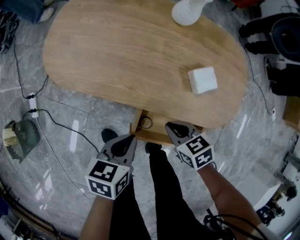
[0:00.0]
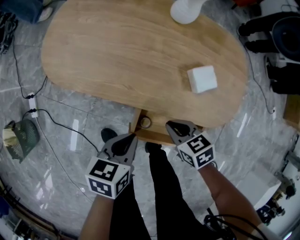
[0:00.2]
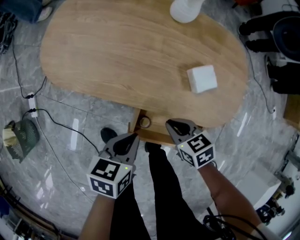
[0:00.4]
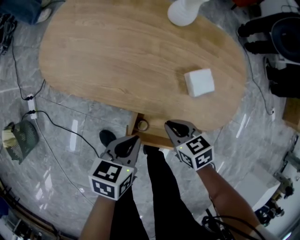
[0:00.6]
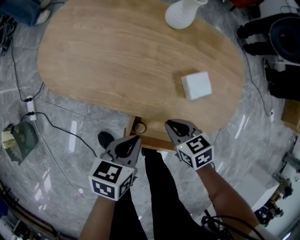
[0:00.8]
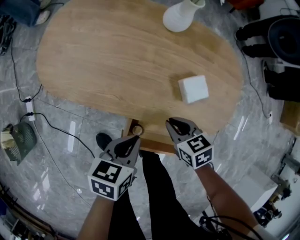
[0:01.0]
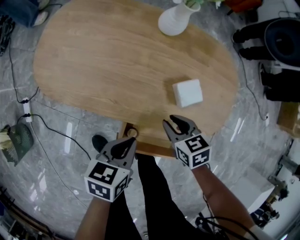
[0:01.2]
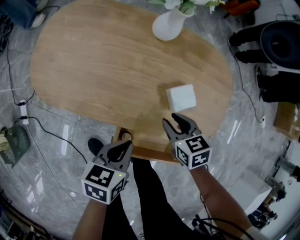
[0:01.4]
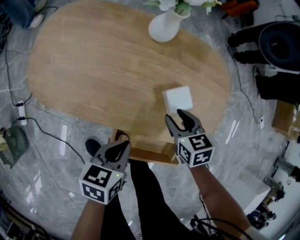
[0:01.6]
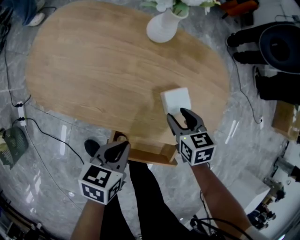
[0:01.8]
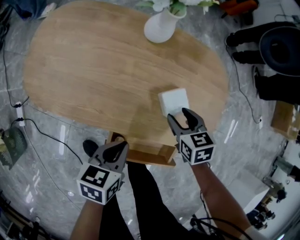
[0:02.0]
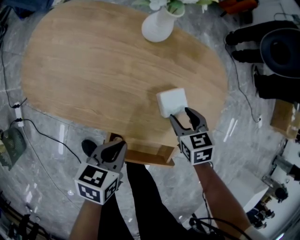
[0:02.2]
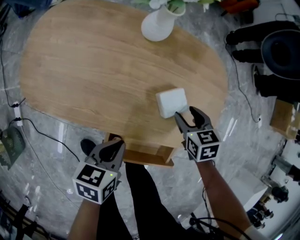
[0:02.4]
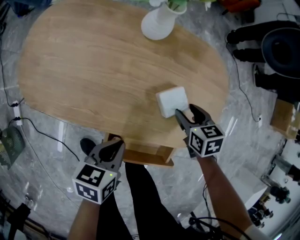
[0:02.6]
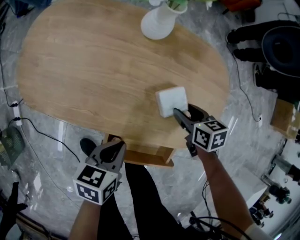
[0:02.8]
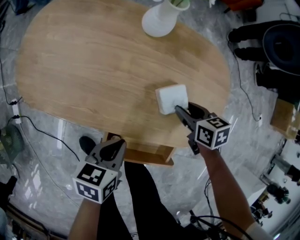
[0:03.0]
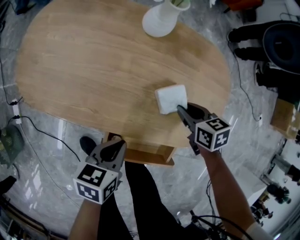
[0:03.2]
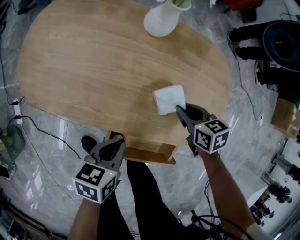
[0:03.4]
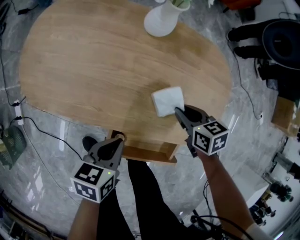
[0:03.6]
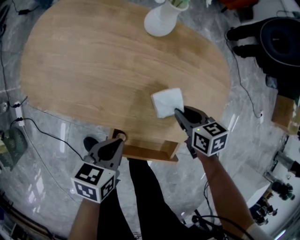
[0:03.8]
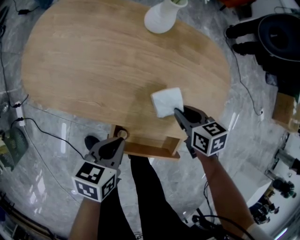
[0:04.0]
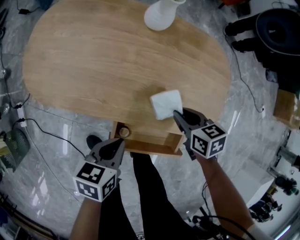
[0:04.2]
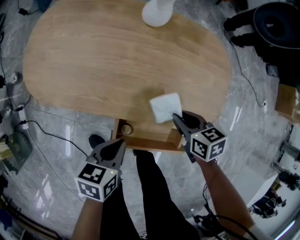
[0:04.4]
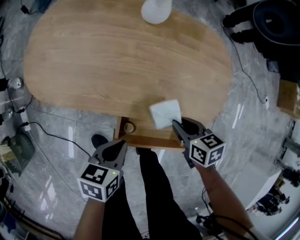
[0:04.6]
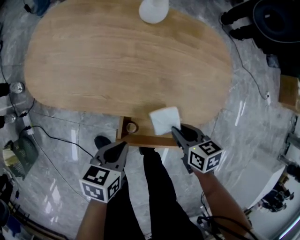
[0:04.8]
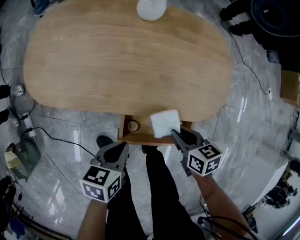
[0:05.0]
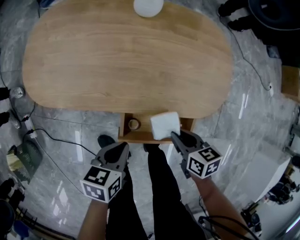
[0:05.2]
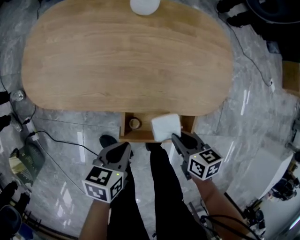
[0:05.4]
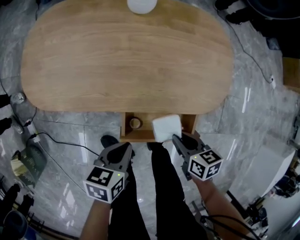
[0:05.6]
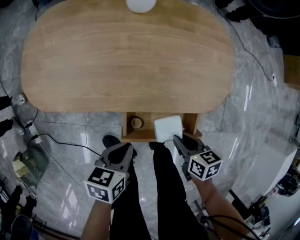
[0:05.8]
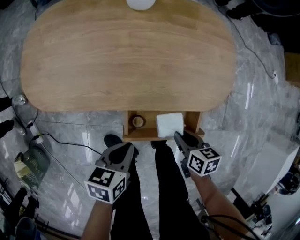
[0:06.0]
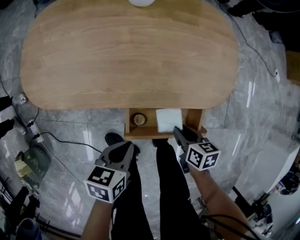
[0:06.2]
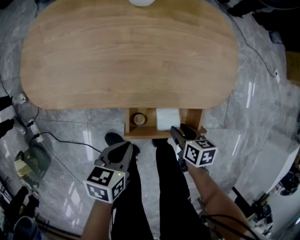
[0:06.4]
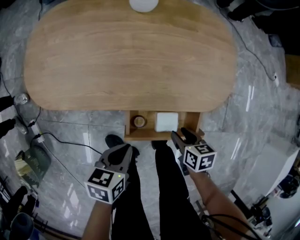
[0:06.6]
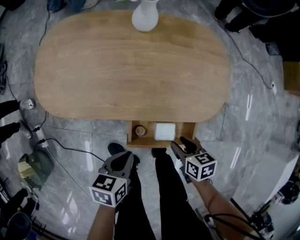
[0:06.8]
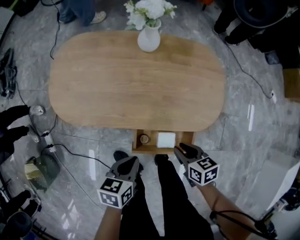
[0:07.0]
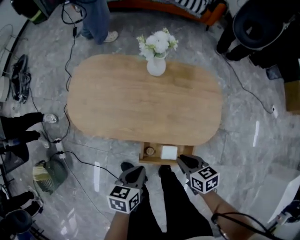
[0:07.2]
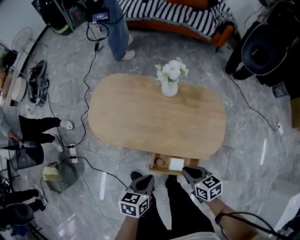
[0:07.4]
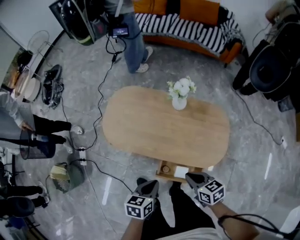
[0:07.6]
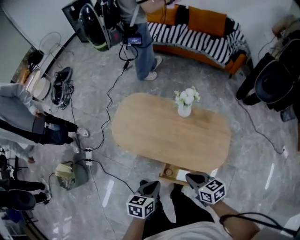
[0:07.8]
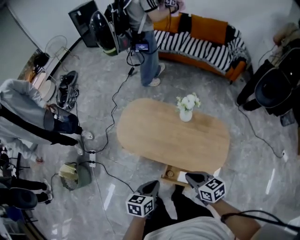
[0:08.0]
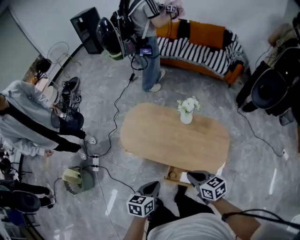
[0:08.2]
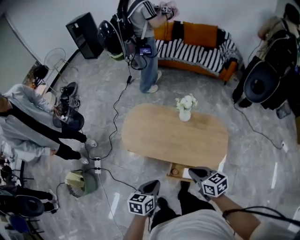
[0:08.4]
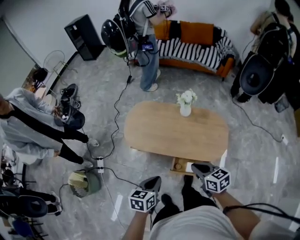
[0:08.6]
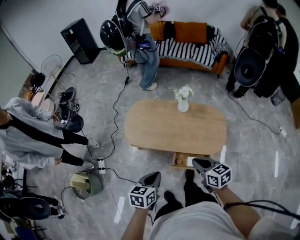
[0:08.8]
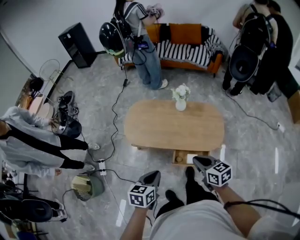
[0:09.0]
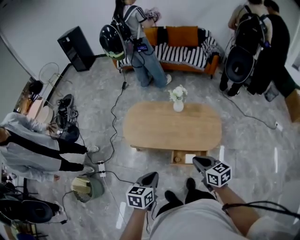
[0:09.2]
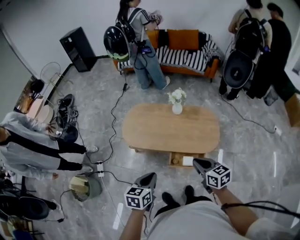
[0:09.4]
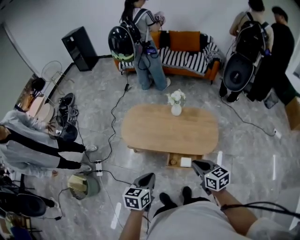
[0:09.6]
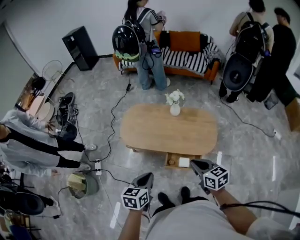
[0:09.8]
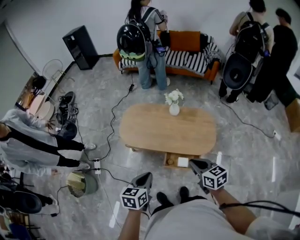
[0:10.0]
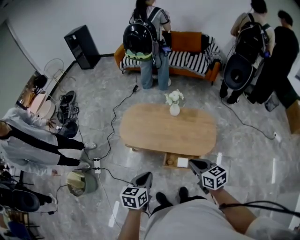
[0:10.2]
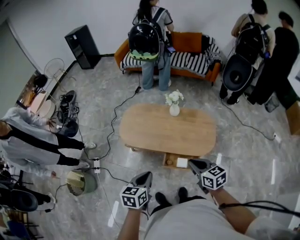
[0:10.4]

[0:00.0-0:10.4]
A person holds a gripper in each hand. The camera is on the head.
0:00.0 to 0:01.4: The right gripper travels forward and to the right by roughly 15 cm, and opens. Meanwhile the left gripper moves to the right and forward, approximately 10 cm.
0:01.4 to 0:03.0: The right gripper goes roughly 10 cm to the right and forward.
0:03.0 to 0:04.4: The right gripper travels backward by about 10 cm, and closes. Meanwhile the left gripper goes approximately 5 cm backward.
0:04.4 to 0:06.0: The right gripper is displaced backward by about 15 cm, and rotates approximately 30 degrees; the left gripper is displaced backward by about 5 cm.
0:06.0 to 0:07.4: The grippers both shift upward by about 25 cm. The right gripper swivels about 30 degrees, and opens, then closes once more.
0:07.4 to 0:09.0: The right gripper is displaced upward by about 25 cm. The left gripper goes about 25 cm upward, to the left and backward.
0:09.0 to 0:10.4: The left gripper shifts by roughly 5 cm, while the right gripper goes roughly 5 cm to the right.

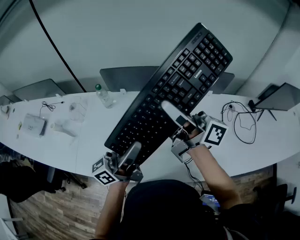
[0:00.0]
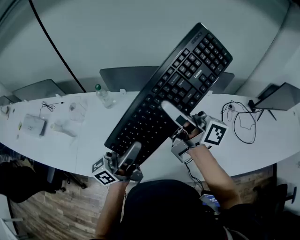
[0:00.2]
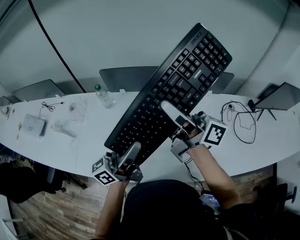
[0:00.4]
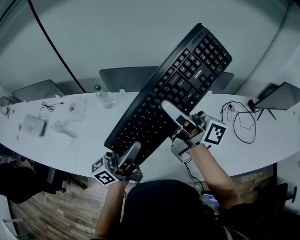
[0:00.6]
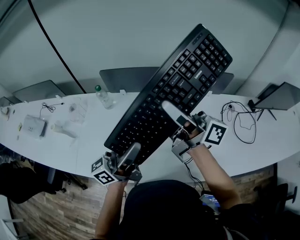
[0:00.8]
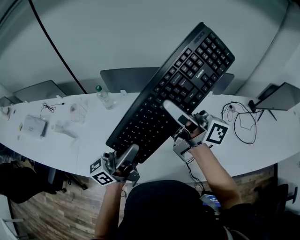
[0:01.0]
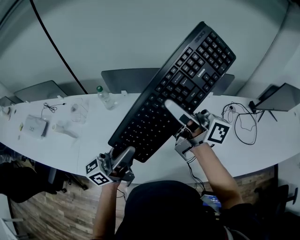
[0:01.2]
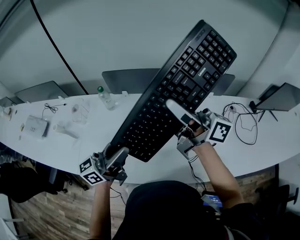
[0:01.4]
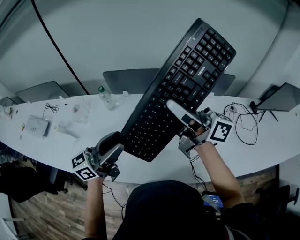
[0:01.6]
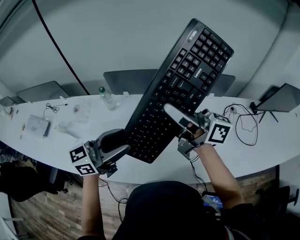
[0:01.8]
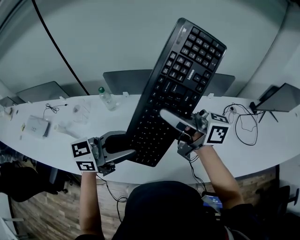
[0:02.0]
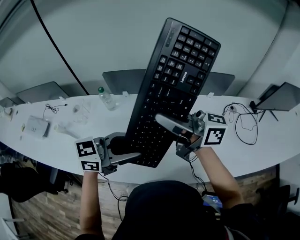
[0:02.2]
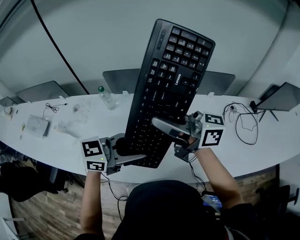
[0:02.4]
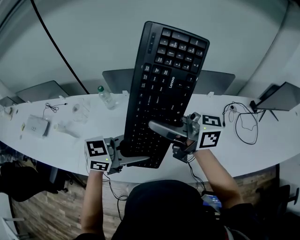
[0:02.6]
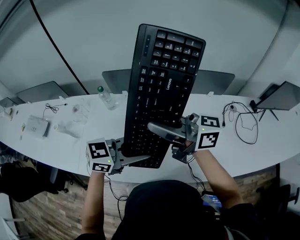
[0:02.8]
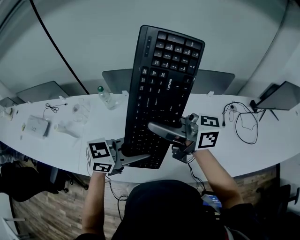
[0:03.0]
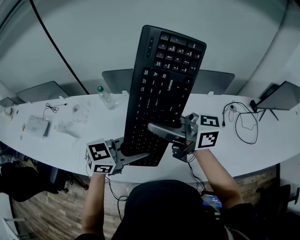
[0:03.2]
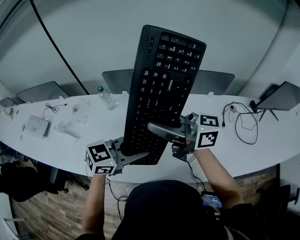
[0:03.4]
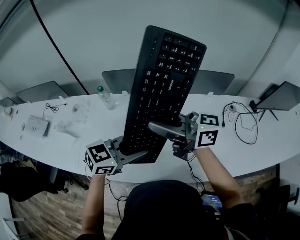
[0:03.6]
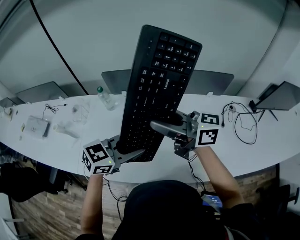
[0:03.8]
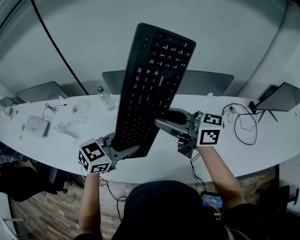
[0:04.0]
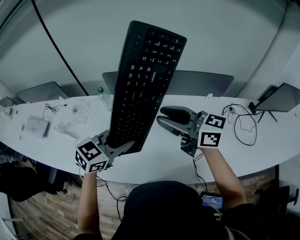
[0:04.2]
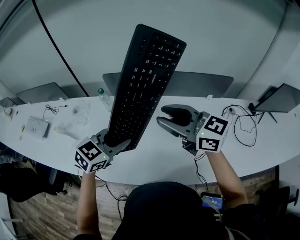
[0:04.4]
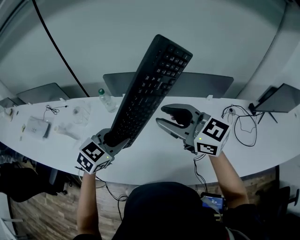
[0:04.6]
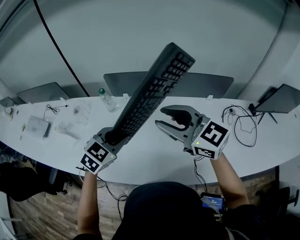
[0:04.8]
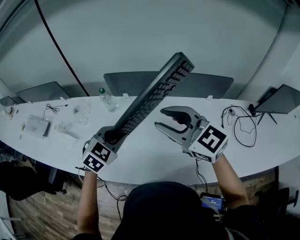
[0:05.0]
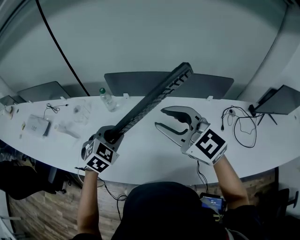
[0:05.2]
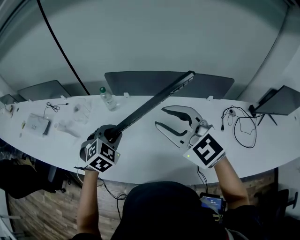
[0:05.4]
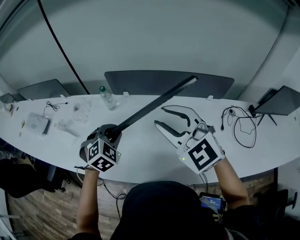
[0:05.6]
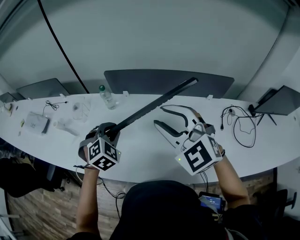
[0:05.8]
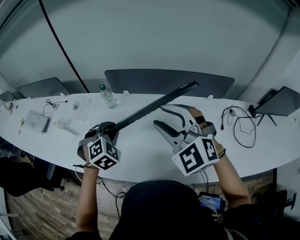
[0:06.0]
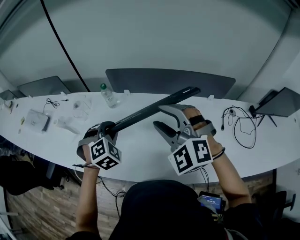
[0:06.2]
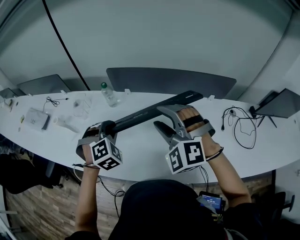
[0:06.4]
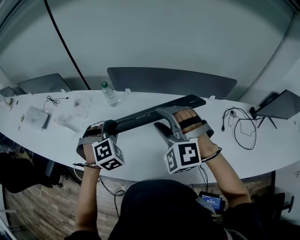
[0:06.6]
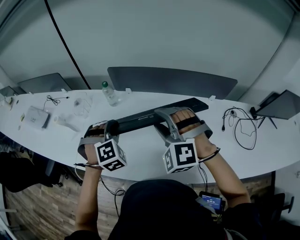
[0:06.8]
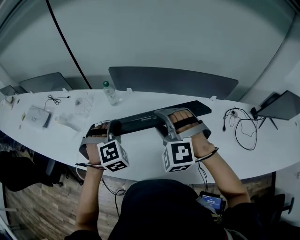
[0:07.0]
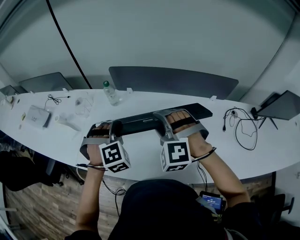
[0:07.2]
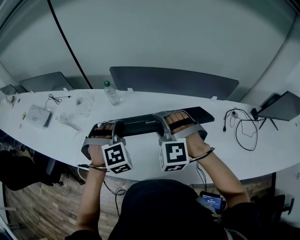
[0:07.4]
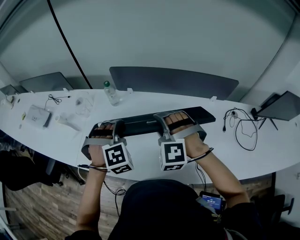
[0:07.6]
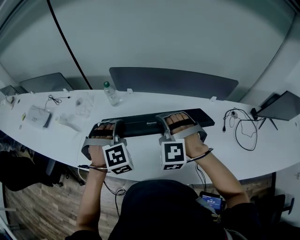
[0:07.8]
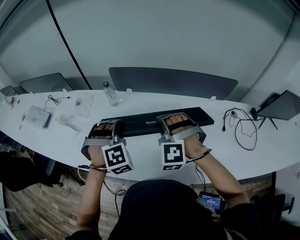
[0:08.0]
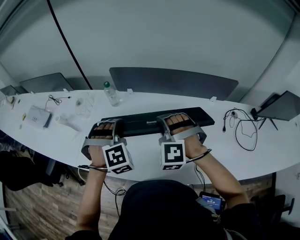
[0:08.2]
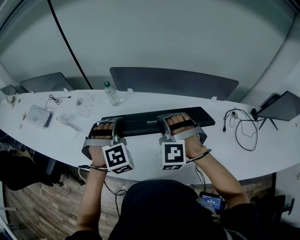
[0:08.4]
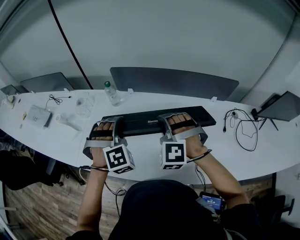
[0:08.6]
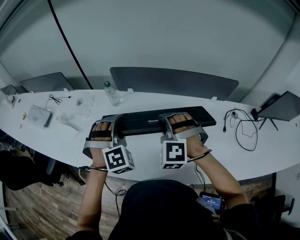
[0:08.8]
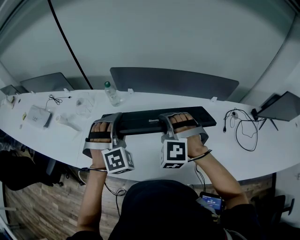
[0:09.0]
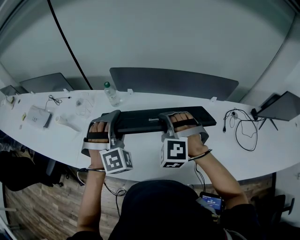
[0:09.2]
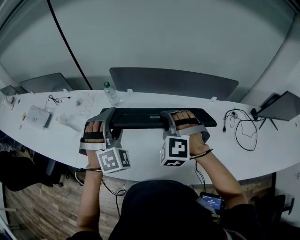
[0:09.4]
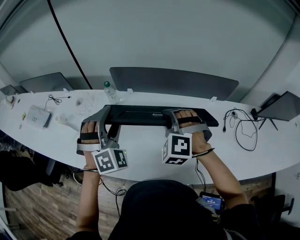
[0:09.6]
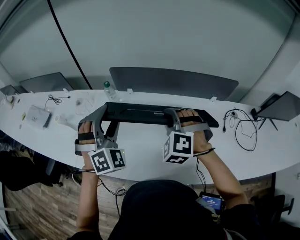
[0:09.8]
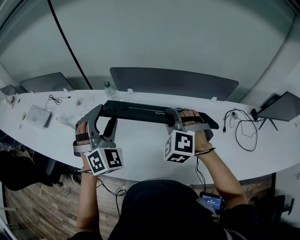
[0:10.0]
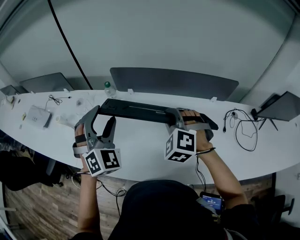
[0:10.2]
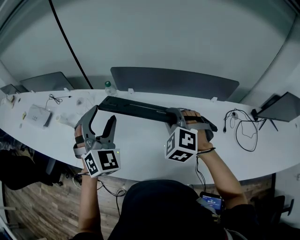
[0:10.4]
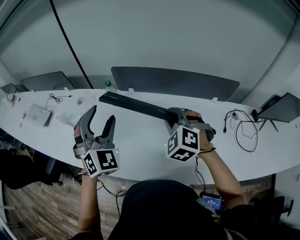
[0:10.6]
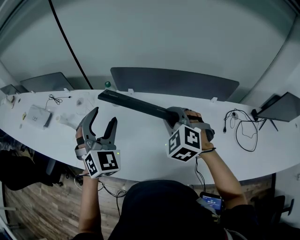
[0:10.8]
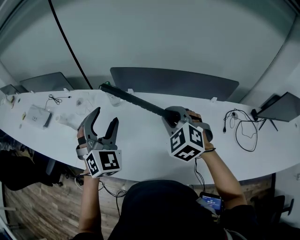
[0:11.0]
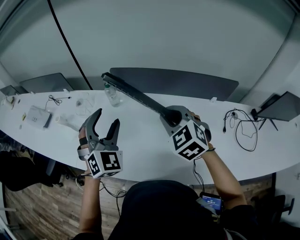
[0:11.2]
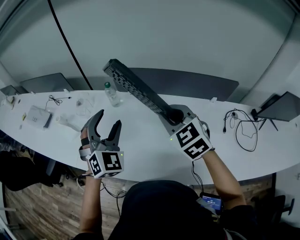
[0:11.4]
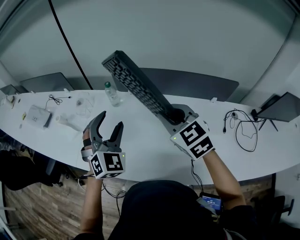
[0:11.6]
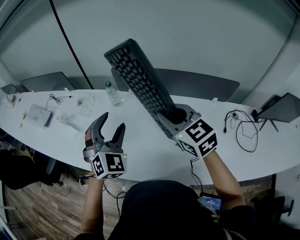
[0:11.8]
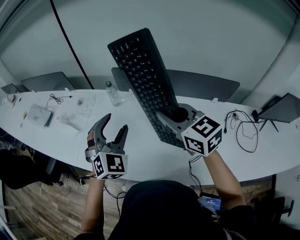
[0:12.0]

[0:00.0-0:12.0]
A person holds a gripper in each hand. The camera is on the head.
0:00.0 to 0:01.6: The left gripper is displaced to the left by some 5 cm, and swivels some 30 degrees.
0:01.6 to 0:03.0: The right gripper ends up about 5 cm from where it was, while the left gripper shifts by some 10 cm, and tilts its fingers about 30 degrees downward.
0:03.0 to 0:04.4: The right gripper swivels roughly 30 degrees. The left gripper moves roughly 10 cm, and swivels roughly 30 degrees.
0:04.4 to 0:06.0: The right gripper twists approximately 50 degrees counterclockwise, seen from behind; the left gripper shifts roughly 10 cm to the left, forward and downward, and rotates about 50 degrees.
0:06.0 to 0:07.6: The left gripper rotates about 20 degrees, while the right gripper moves downward, approximately 10 cm, and changes its angle by some 40 degrees.
0:07.6 to 0:09.0: The right gripper closes its fingers.
0:09.0 to 0:10.4: The left gripper goes roughly 10 cm upward, and turns by about 30 degrees.
0:10.4 to 0:12.0: The left gripper moves roughly 5 cm. Meanwhile the right gripper heads upward, covering roughly 10 cm, and changes its angle by roughly 60 degrees.

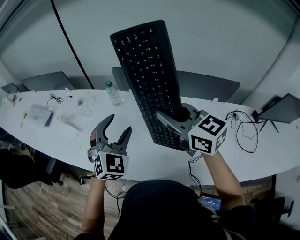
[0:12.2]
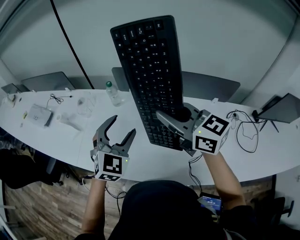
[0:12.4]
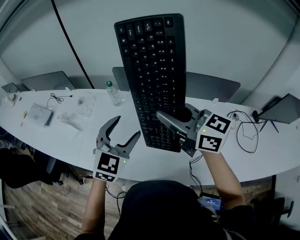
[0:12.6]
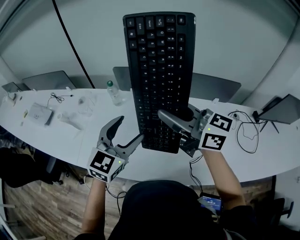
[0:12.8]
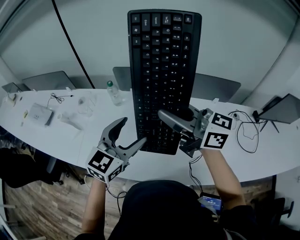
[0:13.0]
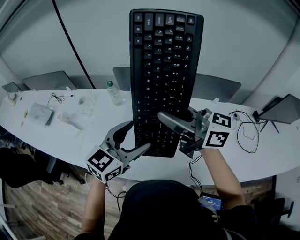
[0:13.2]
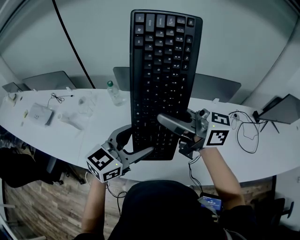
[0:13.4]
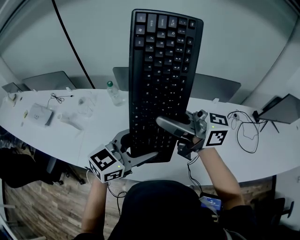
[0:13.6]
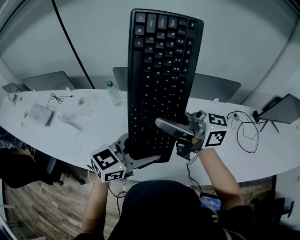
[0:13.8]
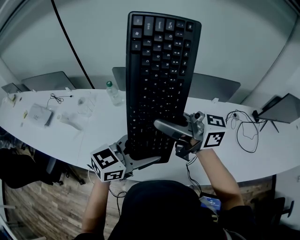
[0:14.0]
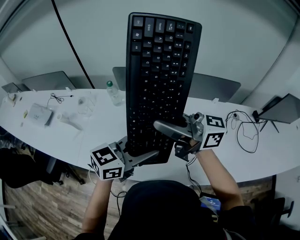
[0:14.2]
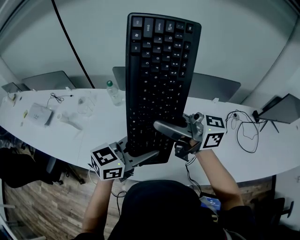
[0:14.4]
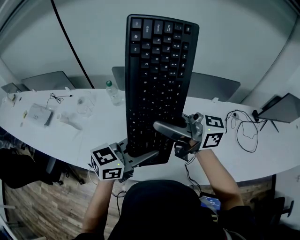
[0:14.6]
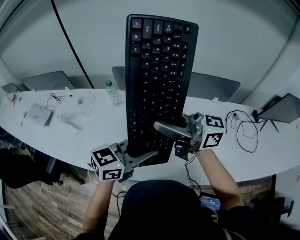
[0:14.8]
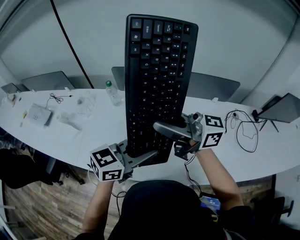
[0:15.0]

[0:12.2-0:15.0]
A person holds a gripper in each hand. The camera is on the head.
0:12.2 to 0:13.6: The right gripper moves roughly 5 cm, and changes its angle by roughly 40 degrees. Meanwhile the left gripper changes place by approximately 10 cm, and rotates about 60 degrees.
0:13.6 to 0:15.0: The left gripper closes its fingers.
